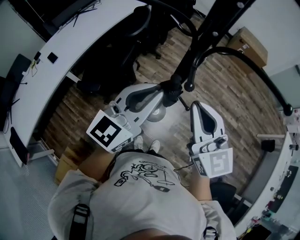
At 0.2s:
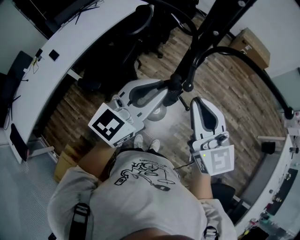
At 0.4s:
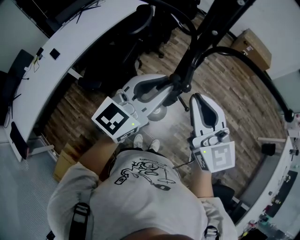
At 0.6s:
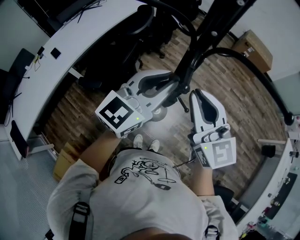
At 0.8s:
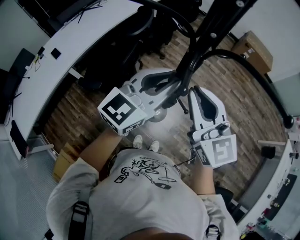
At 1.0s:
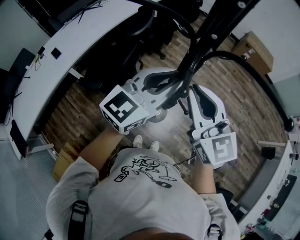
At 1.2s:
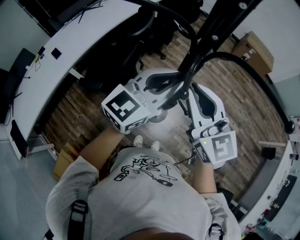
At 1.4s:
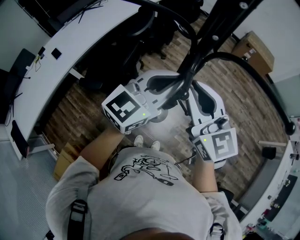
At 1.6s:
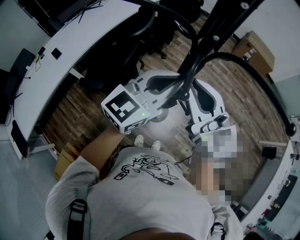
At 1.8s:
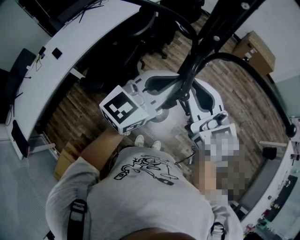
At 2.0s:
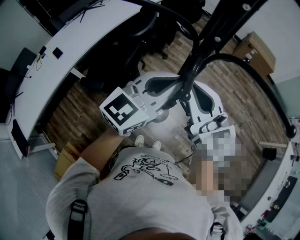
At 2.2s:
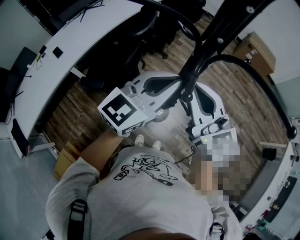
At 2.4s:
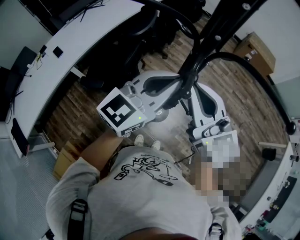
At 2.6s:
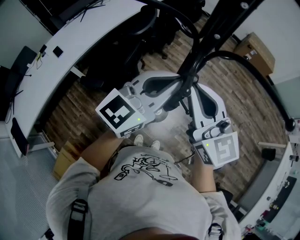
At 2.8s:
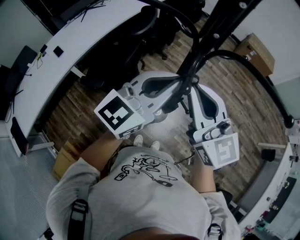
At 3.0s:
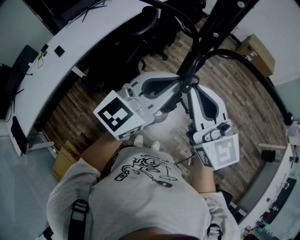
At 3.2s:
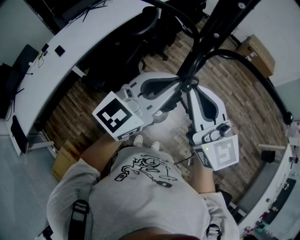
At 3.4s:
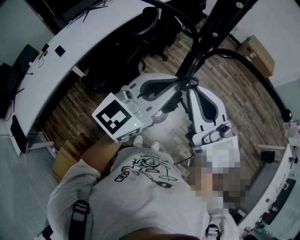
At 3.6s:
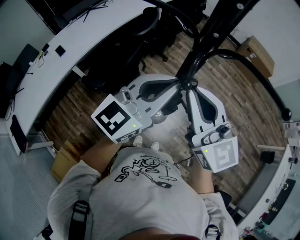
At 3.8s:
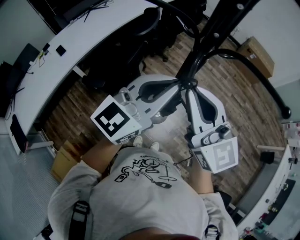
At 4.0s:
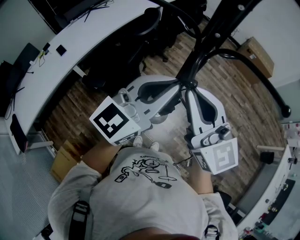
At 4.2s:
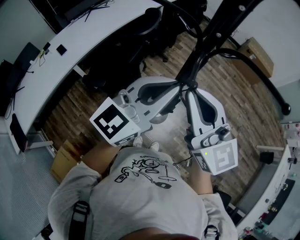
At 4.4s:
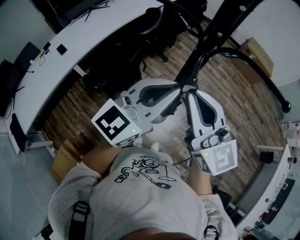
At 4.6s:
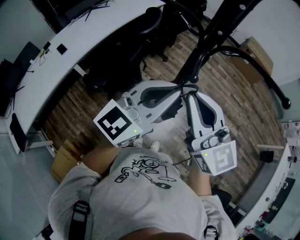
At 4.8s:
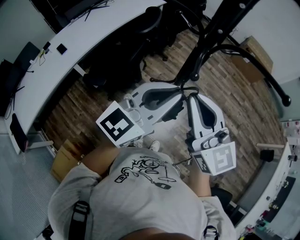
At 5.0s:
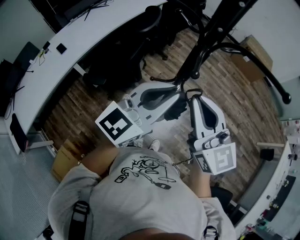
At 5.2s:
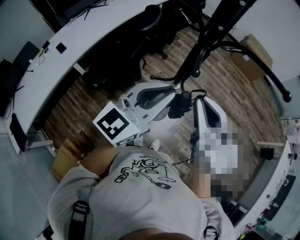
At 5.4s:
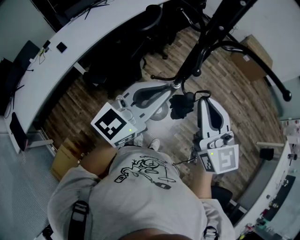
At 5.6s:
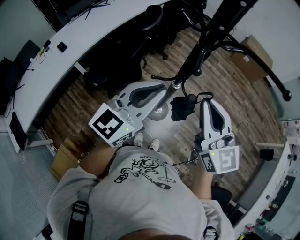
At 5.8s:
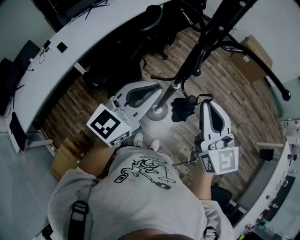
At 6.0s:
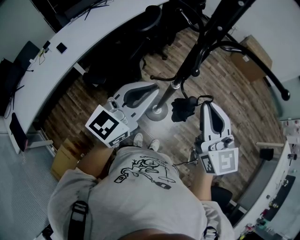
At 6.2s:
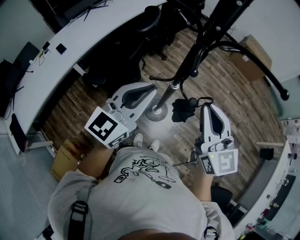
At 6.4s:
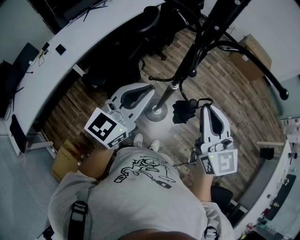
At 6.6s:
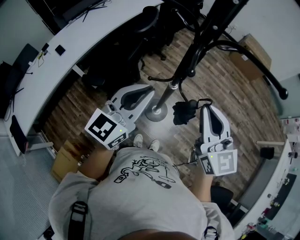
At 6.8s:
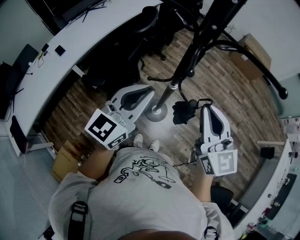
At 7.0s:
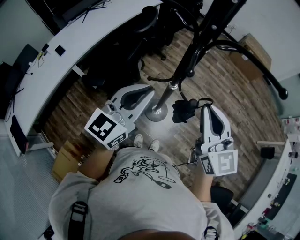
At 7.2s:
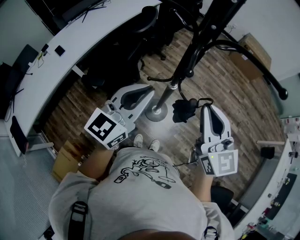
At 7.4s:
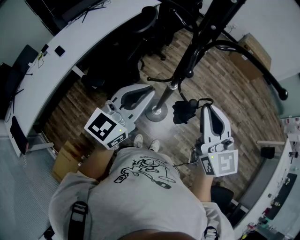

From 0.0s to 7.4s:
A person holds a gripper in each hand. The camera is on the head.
From 0.0s to 1.4s: The left gripper moves forward and to the right, approximately 10 cm. Meanwhile the right gripper shifts about 5 cm forward.
From 1.4s to 3.0s: There are only small adjustments of the grippers.
From 3.0s to 4.4s: Both grippers travel together backward, approximately 5 cm.
From 4.4s to 6.0s: The right gripper heads to the right and downward, covering approximately 10 cm. Meanwhile the left gripper ends up about 5 cm from where it was.
From 6.0s to 7.4s: The grippers stay close to where they were, moving slightly.

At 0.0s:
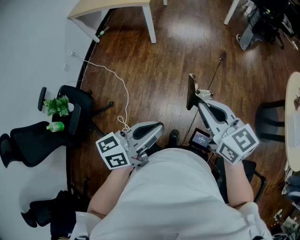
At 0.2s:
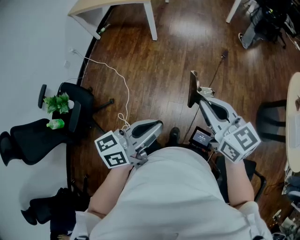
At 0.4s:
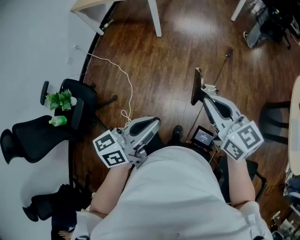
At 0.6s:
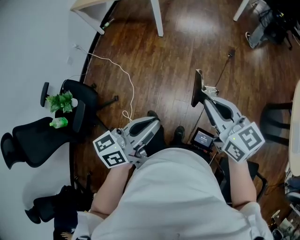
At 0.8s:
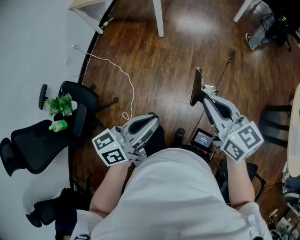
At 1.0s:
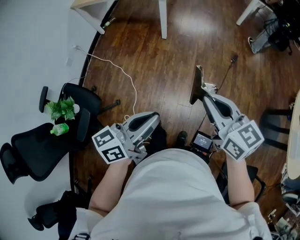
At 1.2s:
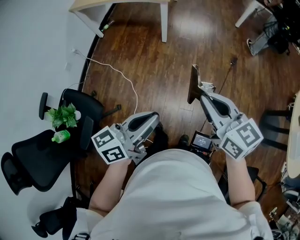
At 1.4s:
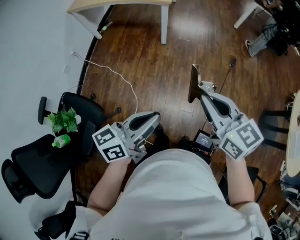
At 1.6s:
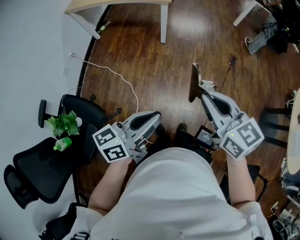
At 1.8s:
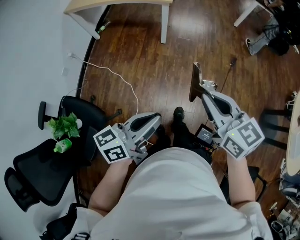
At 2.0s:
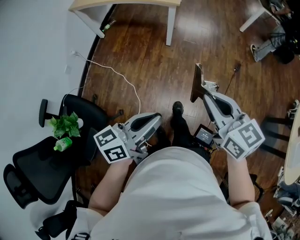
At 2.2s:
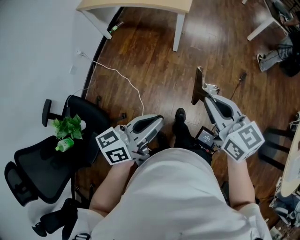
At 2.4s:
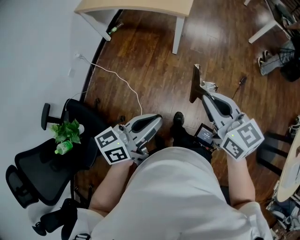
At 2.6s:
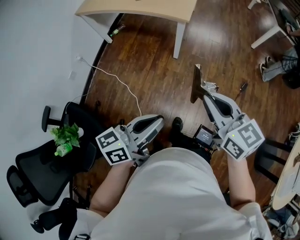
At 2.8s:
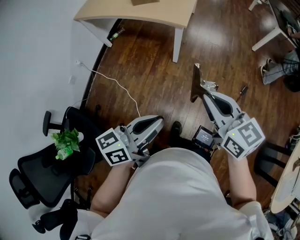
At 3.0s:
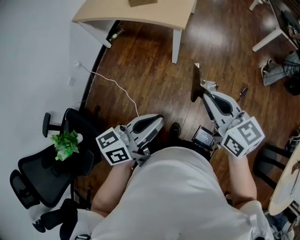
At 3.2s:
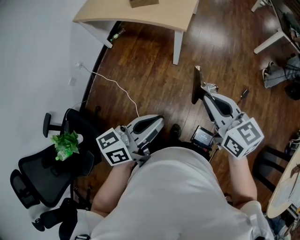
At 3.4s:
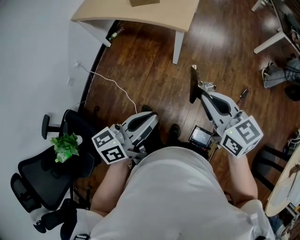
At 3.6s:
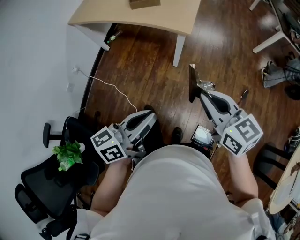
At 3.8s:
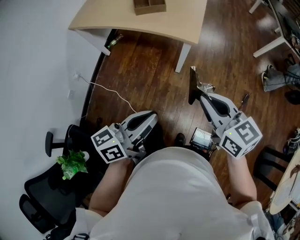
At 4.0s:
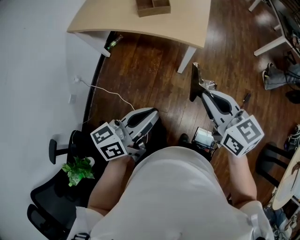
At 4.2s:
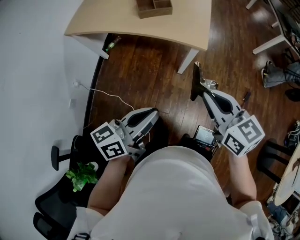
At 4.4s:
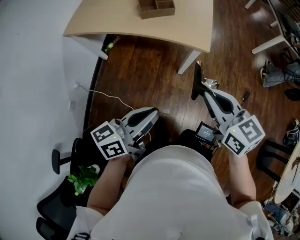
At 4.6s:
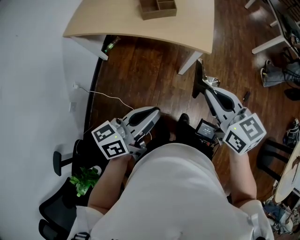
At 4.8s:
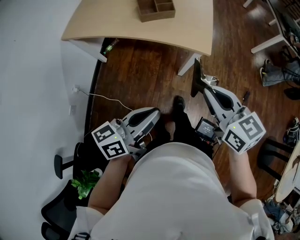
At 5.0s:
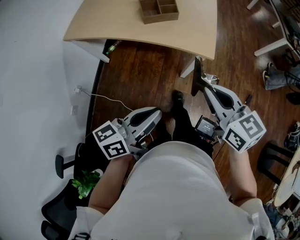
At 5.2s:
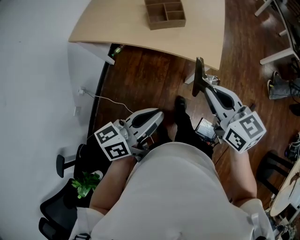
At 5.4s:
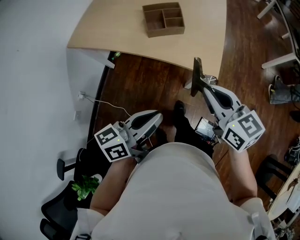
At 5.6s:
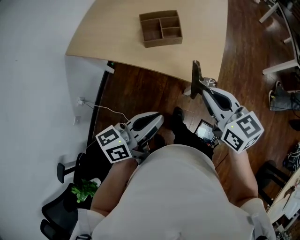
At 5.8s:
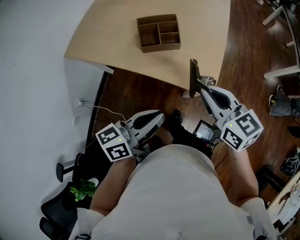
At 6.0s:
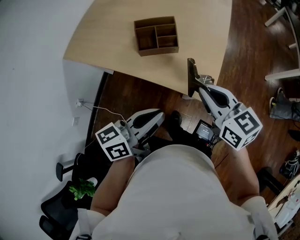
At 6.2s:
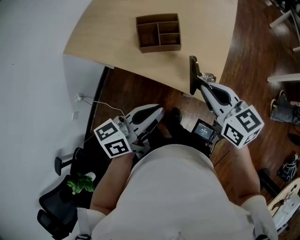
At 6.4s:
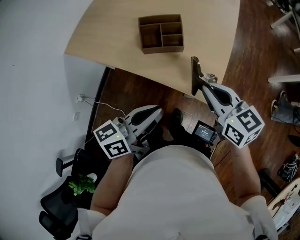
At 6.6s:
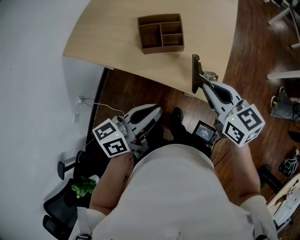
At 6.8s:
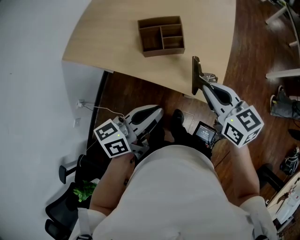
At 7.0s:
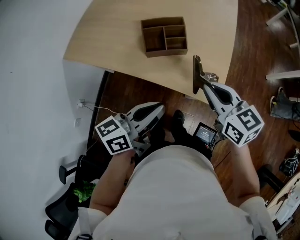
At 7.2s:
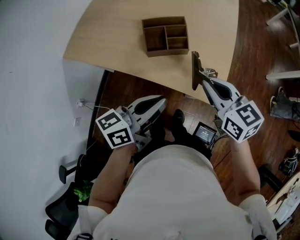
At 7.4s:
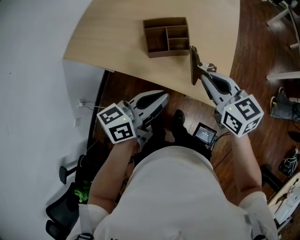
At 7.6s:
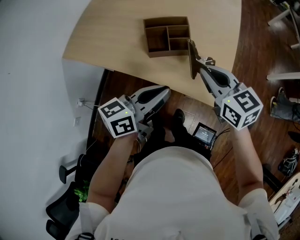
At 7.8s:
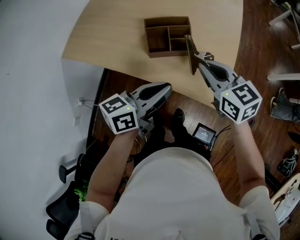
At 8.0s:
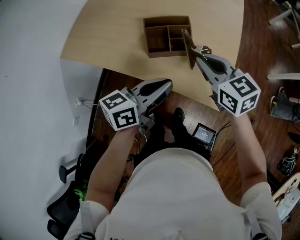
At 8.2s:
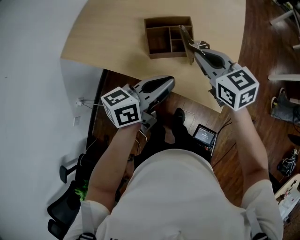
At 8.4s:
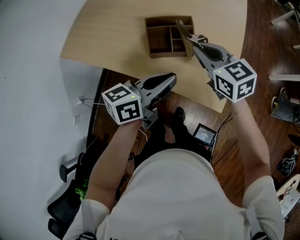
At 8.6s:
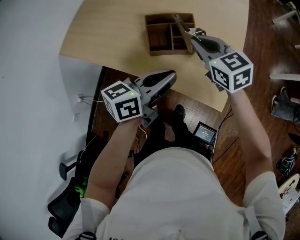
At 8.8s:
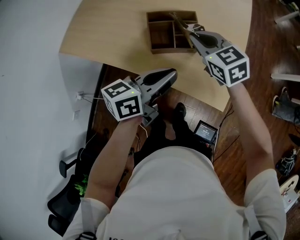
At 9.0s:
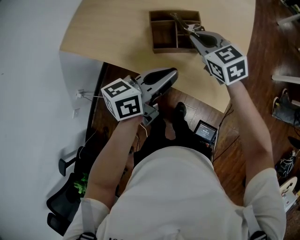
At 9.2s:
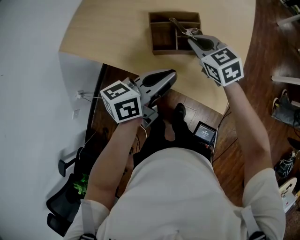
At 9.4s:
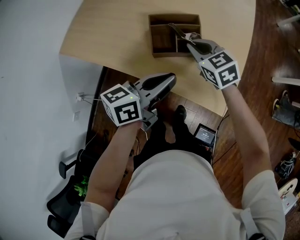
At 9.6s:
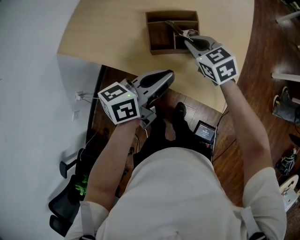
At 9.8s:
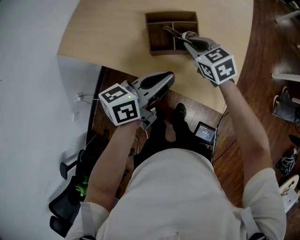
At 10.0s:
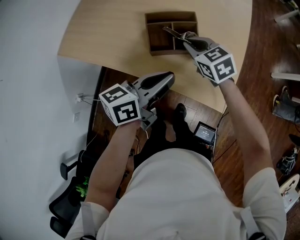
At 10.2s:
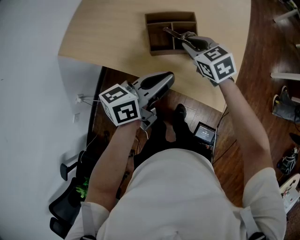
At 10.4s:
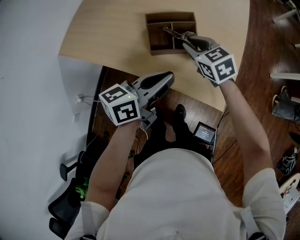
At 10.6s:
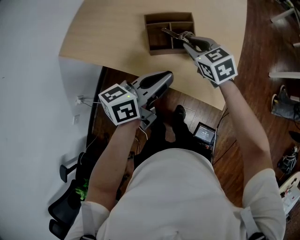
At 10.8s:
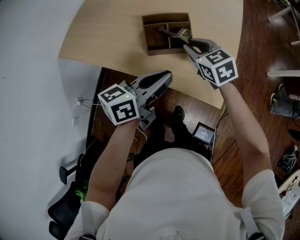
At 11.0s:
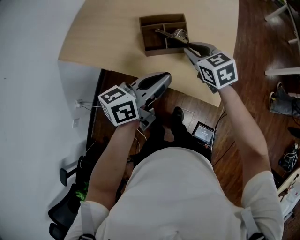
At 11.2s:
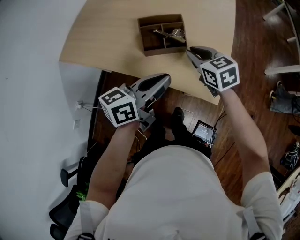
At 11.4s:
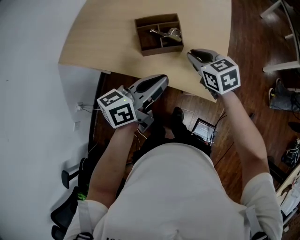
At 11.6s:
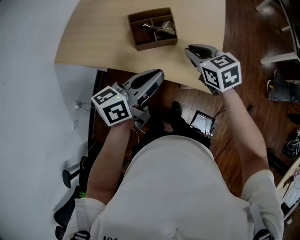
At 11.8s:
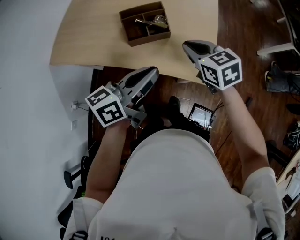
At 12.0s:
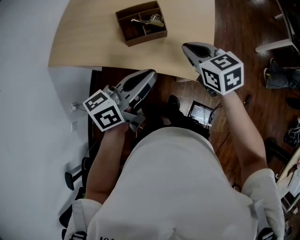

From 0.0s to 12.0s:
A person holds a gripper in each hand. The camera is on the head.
From 0.0s to 1.6s: The grippers both shift to the left and forward by some 25 cm.
From 1.6s to 3.0s: Both grippers move forward, some 25 cm.
From 3.0s to 4.4s: The grippers both shift to the left and forward by about 25 cm.
From 4.4s to 6.0s: Both grippers move forward, some 25 cm.
From 6.0s to 7.6s: Both grippers move forward, about 10 cm.
From 7.6s to 9.0s: The left gripper shifts approximately 5 cm forward. Meanwhile the right gripper is displaced forward, to the left and downward by about 15 cm.
From 9.0s to 10.4s: There are only small adjustments of the grippers.
From 10.4s to 12.0s: The left gripper travels backward and upward by about 10 cm, while the right gripper is displaced backward, to the right and upward by roughly 15 cm.

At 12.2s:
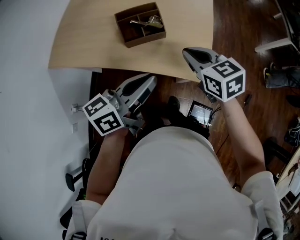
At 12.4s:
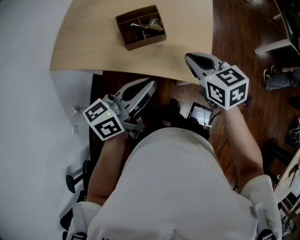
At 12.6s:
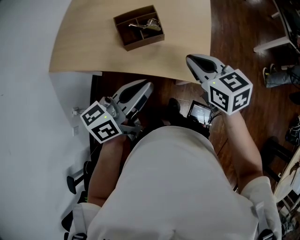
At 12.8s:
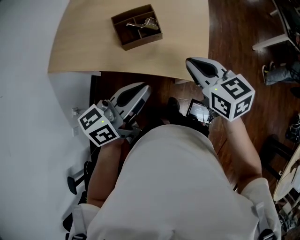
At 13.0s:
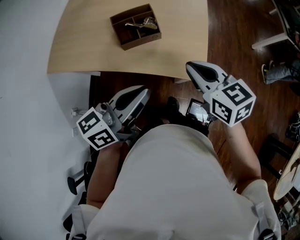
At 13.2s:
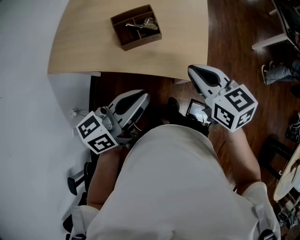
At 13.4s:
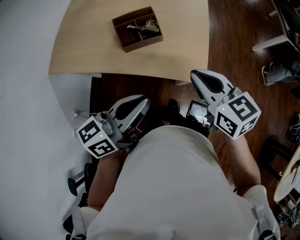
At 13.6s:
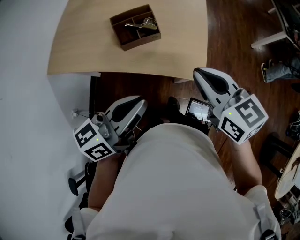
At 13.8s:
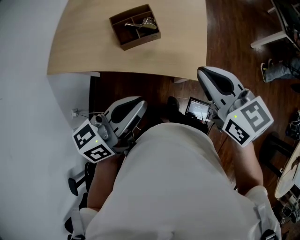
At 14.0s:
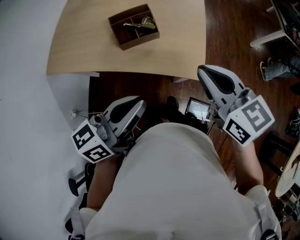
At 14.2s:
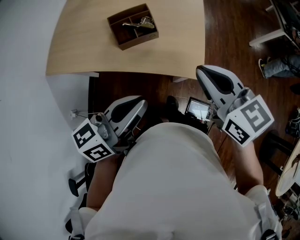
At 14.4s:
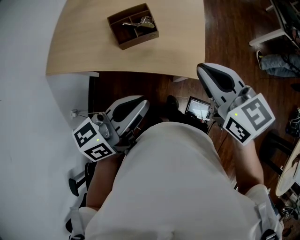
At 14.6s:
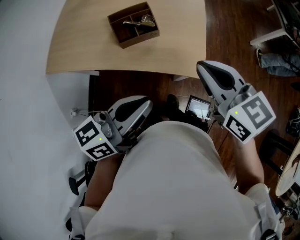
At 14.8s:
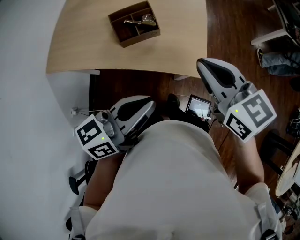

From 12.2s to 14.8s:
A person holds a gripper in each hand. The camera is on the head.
From 12.2s to 13.4s: The right gripper heads backward and upward, covering roughly 10 cm. The left gripper travels backward by some 5 cm.
From 13.4s to 14.8s: The grippers make only small movements.

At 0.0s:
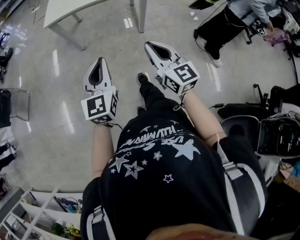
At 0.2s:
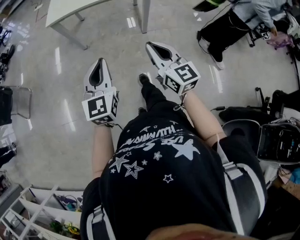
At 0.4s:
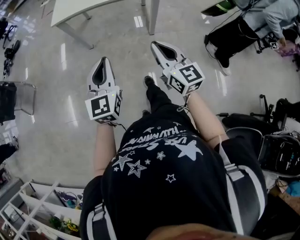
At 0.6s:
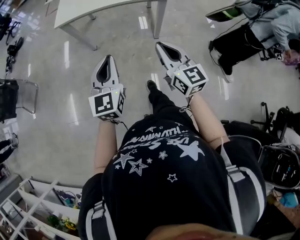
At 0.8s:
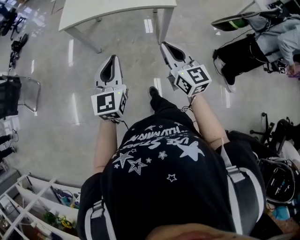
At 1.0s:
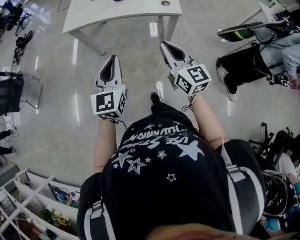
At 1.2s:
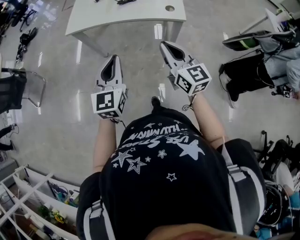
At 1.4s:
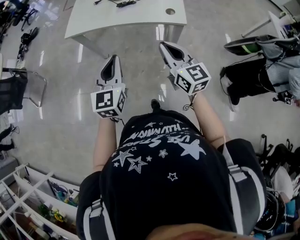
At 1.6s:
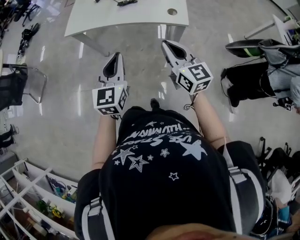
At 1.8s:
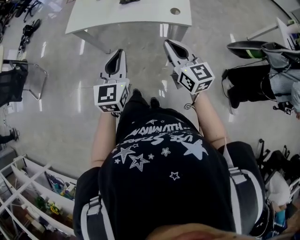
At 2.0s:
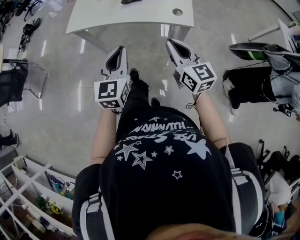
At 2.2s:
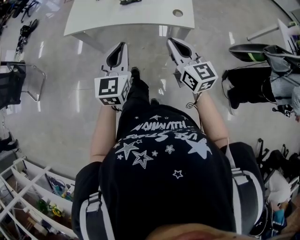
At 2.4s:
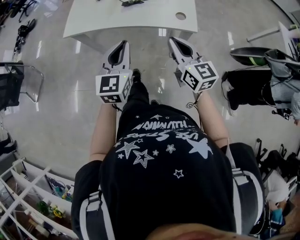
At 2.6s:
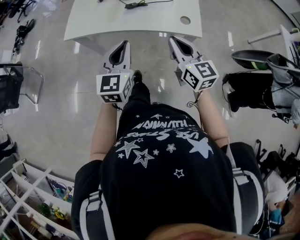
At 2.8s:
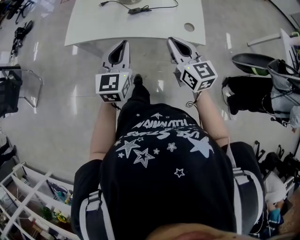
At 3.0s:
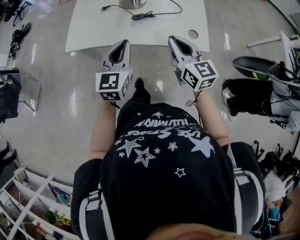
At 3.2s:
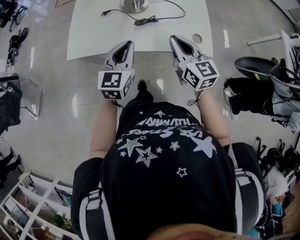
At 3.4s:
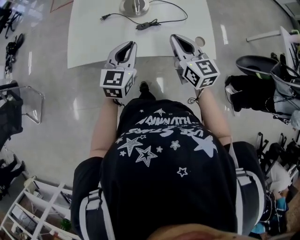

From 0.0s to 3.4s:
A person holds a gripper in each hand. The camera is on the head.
From 0.0s to 1.6s: The two grippers go some 30 cm forward.
From 1.6s to 3.4s: The two grippers go about 30 cm forward.
